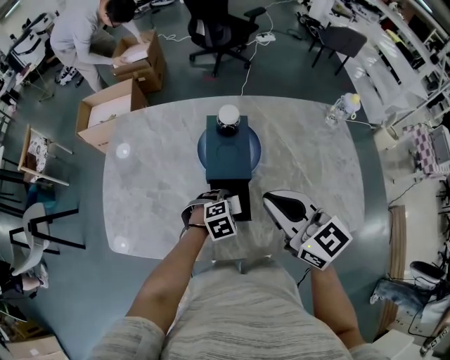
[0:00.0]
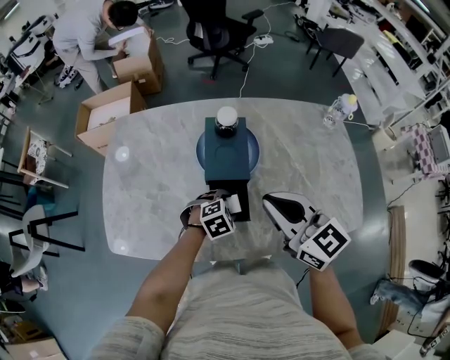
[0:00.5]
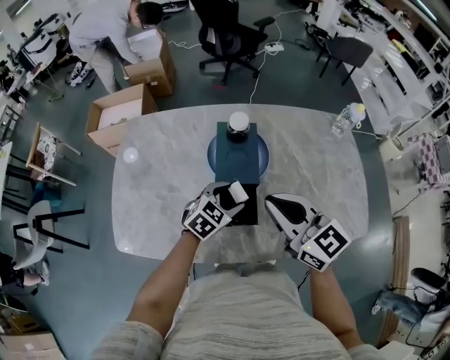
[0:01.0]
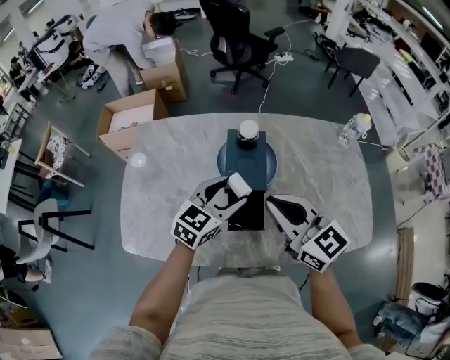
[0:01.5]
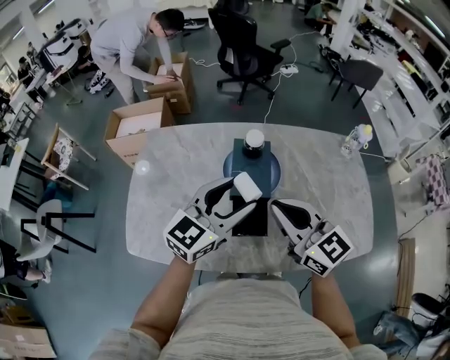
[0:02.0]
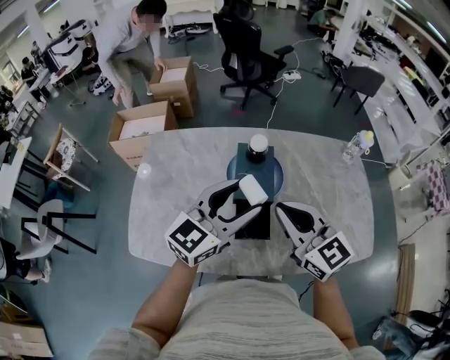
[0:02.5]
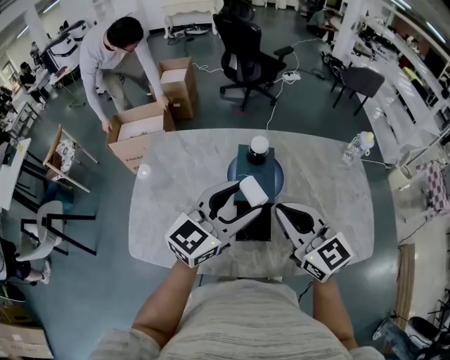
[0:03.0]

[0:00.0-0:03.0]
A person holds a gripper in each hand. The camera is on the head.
0:00.0 to 0:01.5: The left gripper heads upward, covering about 20 cm, and points its fingers roughly 50 degrees further upward.
0:01.5 to 0:03.0: The left gripper is displaced upward by some 15 cm.

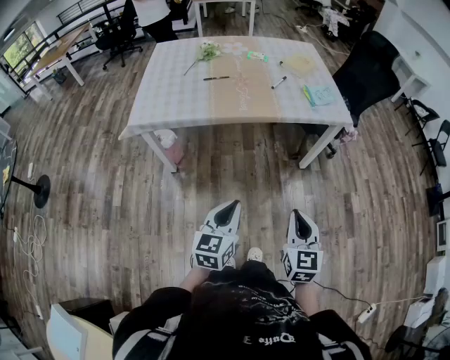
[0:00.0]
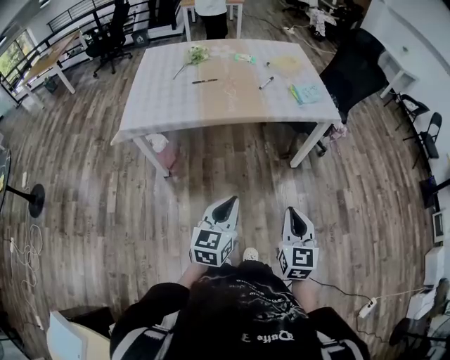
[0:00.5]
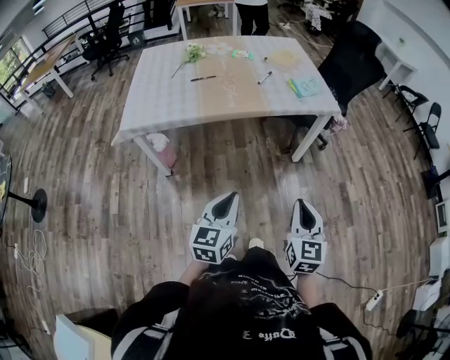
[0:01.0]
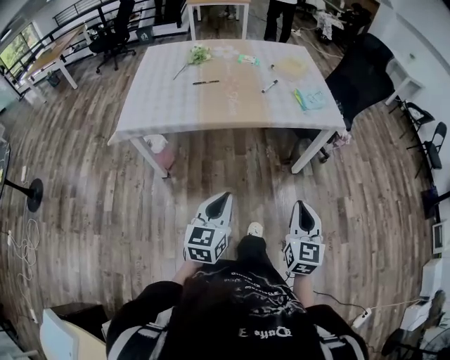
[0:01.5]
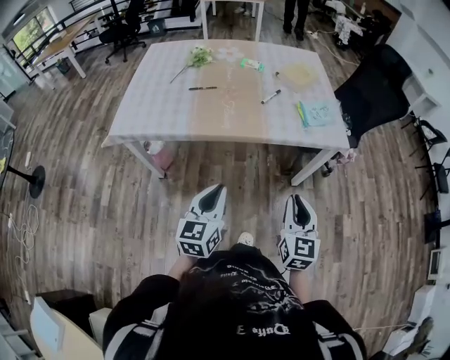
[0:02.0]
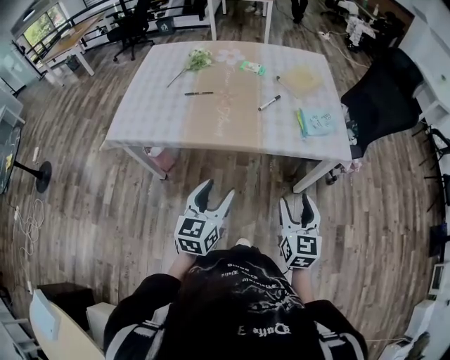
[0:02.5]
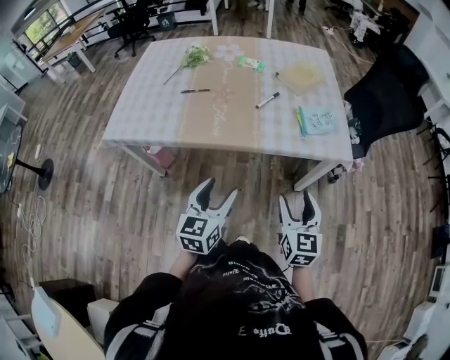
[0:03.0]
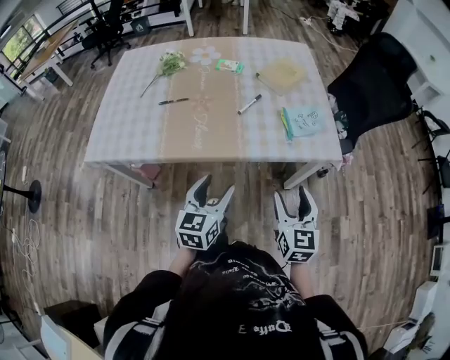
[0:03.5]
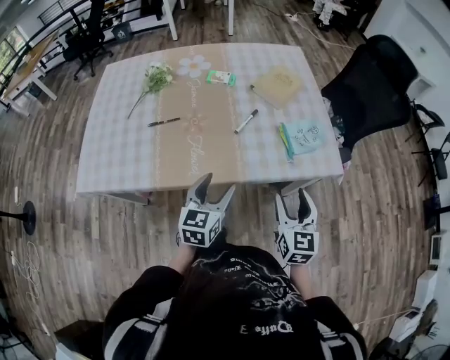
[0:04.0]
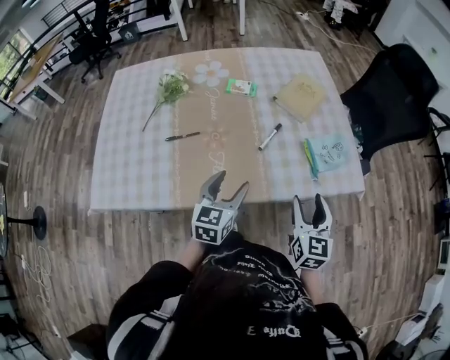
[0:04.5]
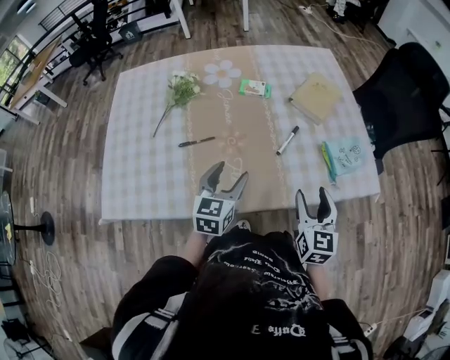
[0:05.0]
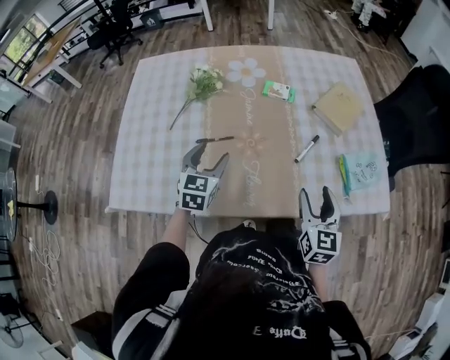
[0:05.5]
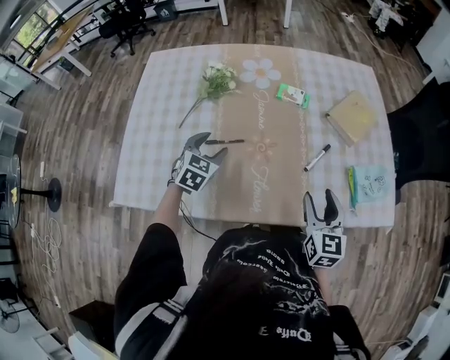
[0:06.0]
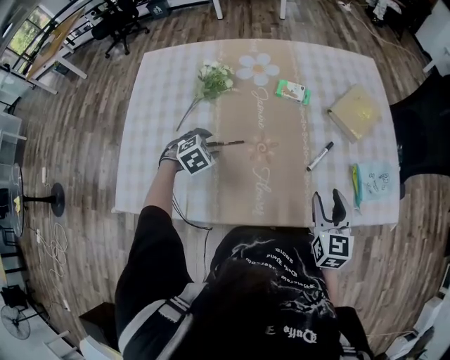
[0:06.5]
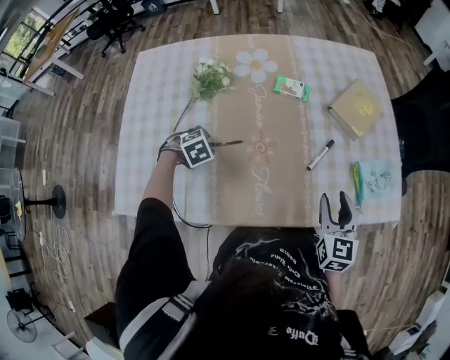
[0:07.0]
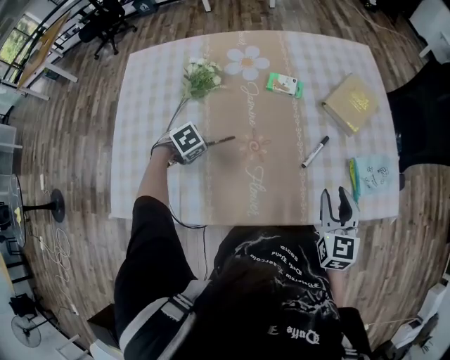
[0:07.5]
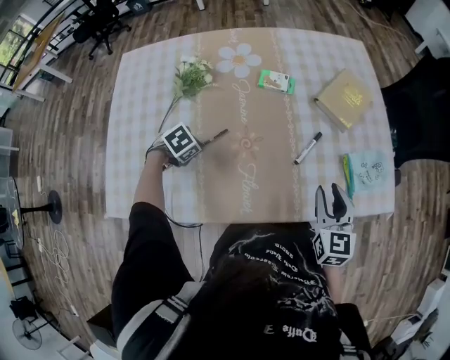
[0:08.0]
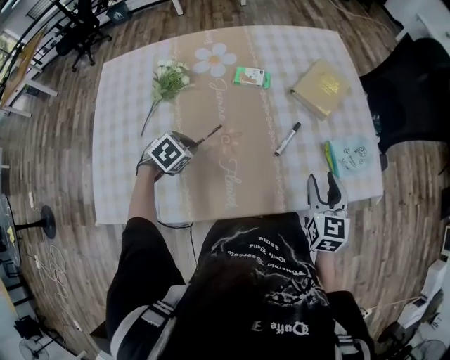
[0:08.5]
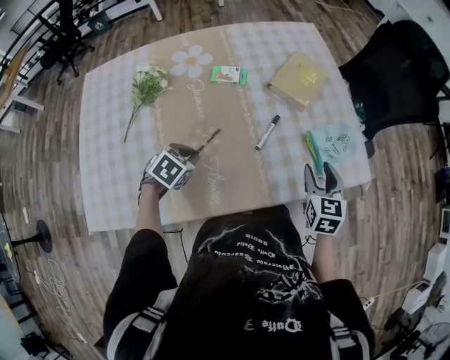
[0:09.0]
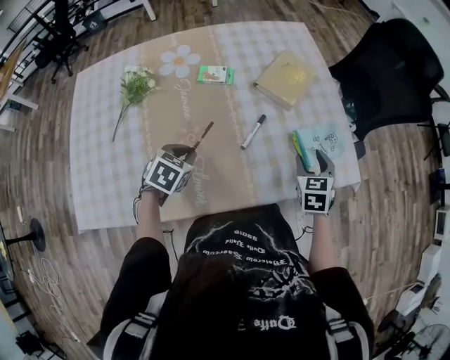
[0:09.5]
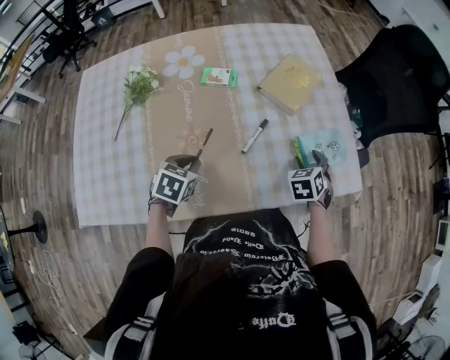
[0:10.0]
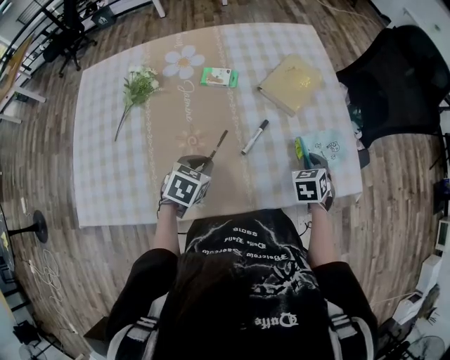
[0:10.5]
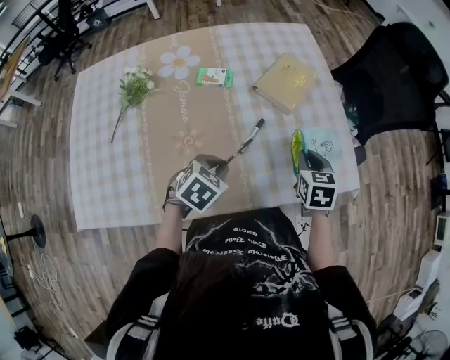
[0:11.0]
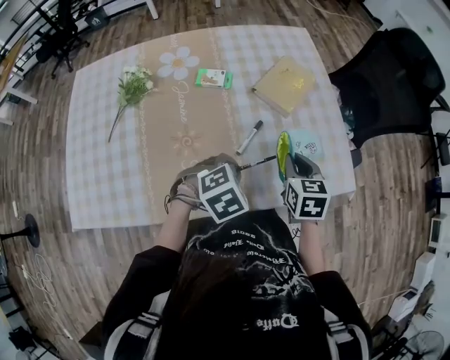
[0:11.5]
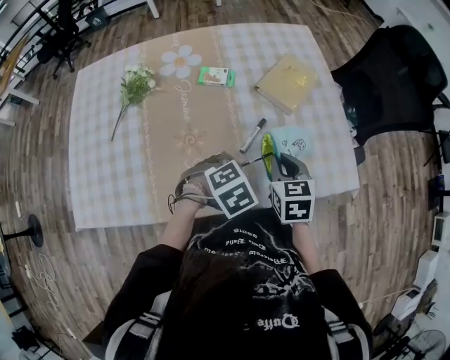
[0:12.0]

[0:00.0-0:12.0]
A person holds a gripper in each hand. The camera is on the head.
0:00.0 to 0:02.0: The two grippers go roughly 20 cm forward.
0:02.0 to 0:04.0: The grippers both shift forward by some 30 cm. The left gripper opens up. Meanwhile the right gripper opens up.
0:04.0 to 0:06.0: The left gripper goes some 40 cm to the left and forward, and swivels roughly 30 degrees, while the right gripper travels to the left and forward by some 25 cm.
0:06.0 to 0:08.0: The left gripper travels downward by some 10 cm, points its fingers some 40 degrees further downward, and closes up; the right gripper shifts by roughly 5 cm, and closes its fingers.
0:08.0 to 0:10.0: The left gripper changes place by approximately 20 cm, and turns by about 30 degrees; the right gripper changes place by some 20 cm, and changes its angle by roughly 40 degrees.
0:10.0 to 0:12.0: The left gripper moves to the right, about 15 cm, and swivels approximately 40 degrees, while the right gripper shifts roughly 15 cm to the left, upward and backward, rotates some 30 degrees, and closes.

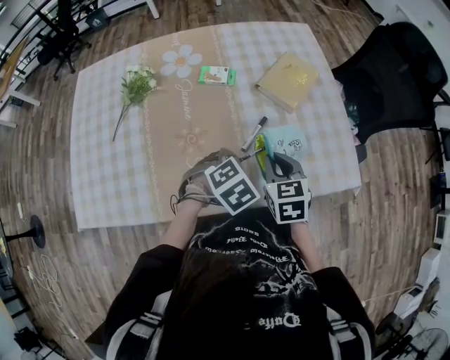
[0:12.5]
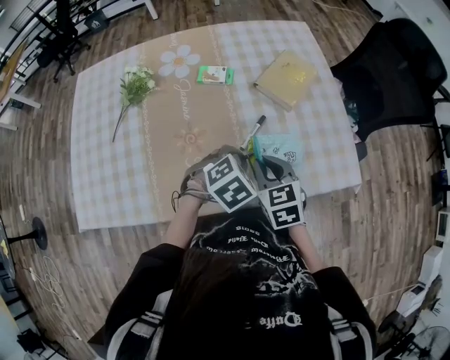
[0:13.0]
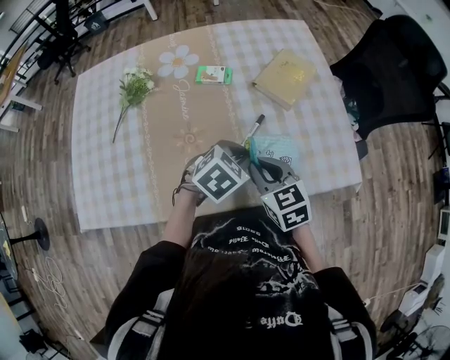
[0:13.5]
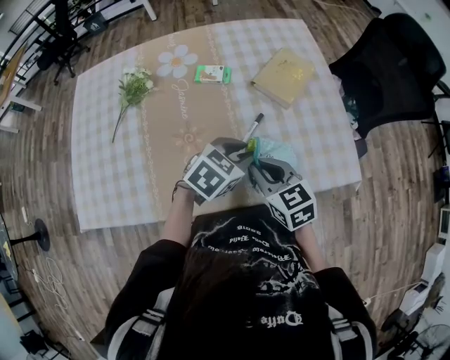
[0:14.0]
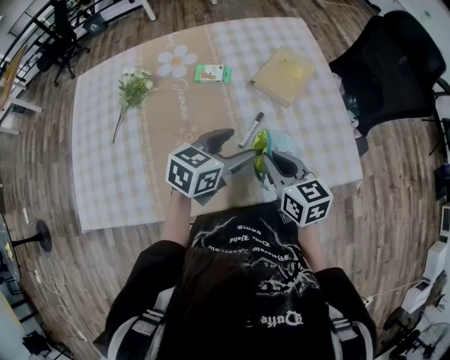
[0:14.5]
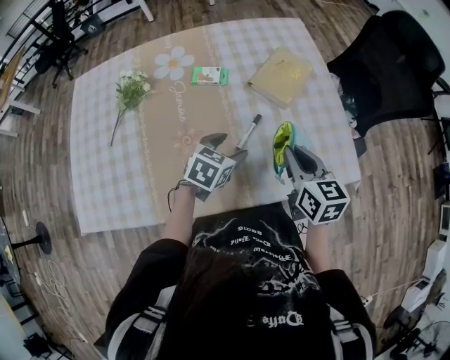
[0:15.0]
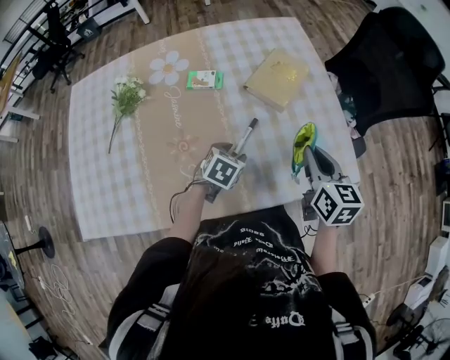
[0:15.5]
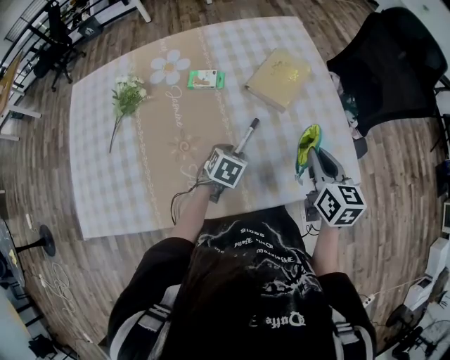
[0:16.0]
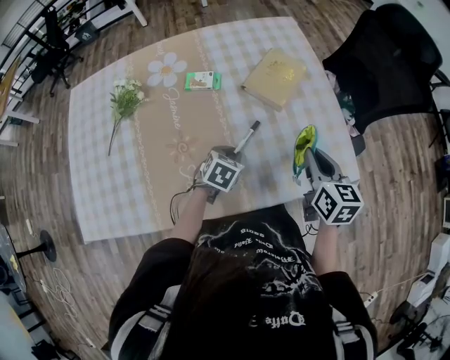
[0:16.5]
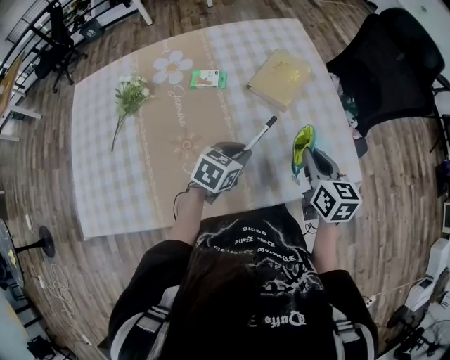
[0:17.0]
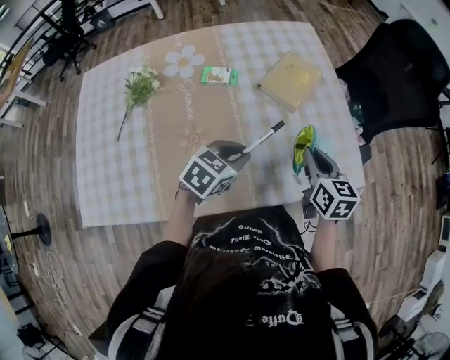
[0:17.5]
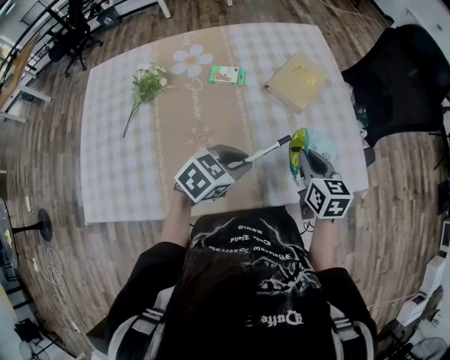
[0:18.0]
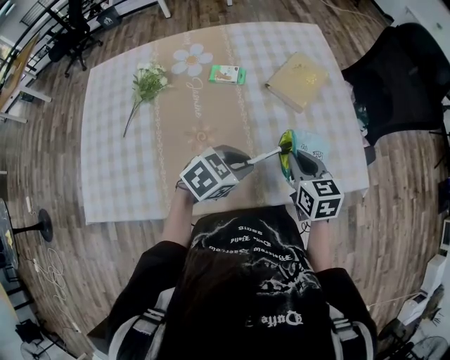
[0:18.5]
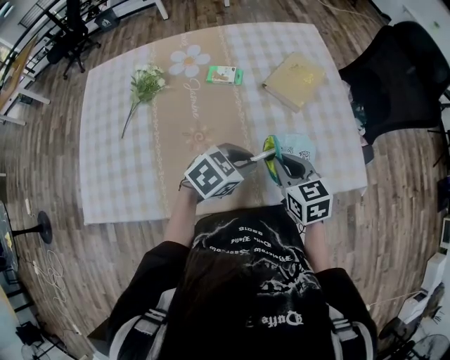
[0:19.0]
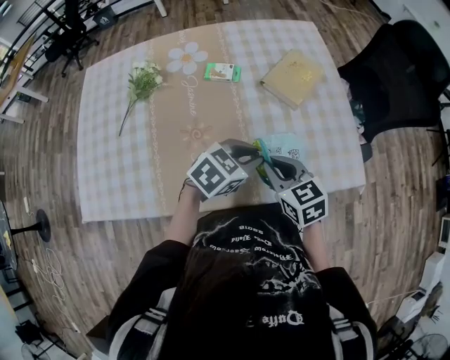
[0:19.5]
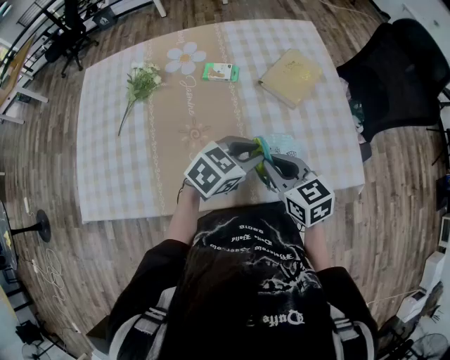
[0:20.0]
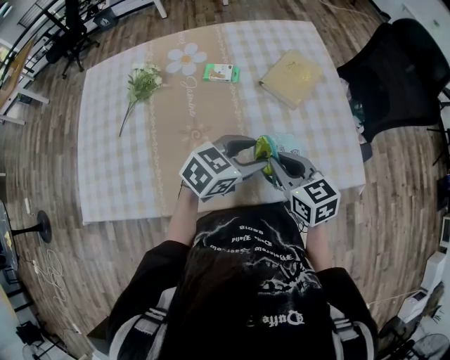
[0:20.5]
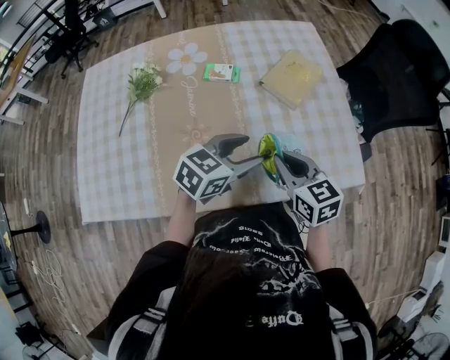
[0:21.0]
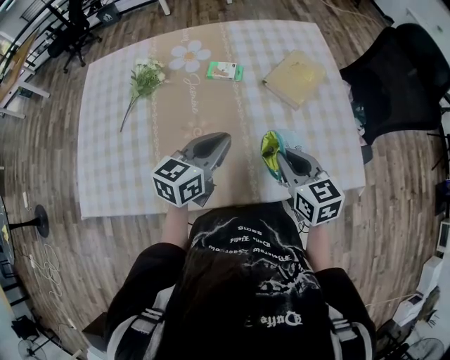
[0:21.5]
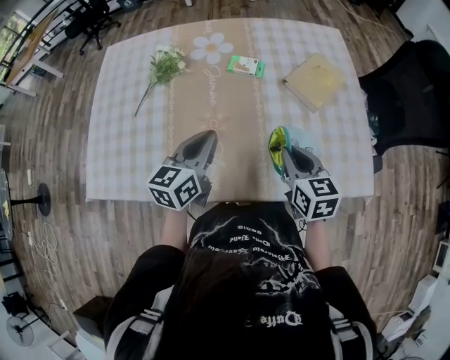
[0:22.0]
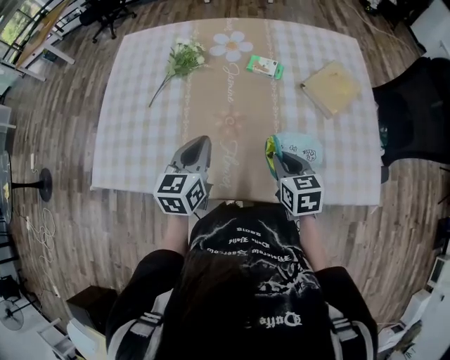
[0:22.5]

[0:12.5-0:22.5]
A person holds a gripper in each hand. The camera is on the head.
0:12.5 to 0:14.5: The left gripper travels upward by roughly 5 cm, tips its fingers upward by about 40 degrees, and opens up. The right gripper swivels some 20 degrees.
0:14.5 to 0:16.5: The right gripper goes about 15 cm to the right and forward, and turns by about 20 degrees. The left gripper travels downward by roughly 15 cm, changes its angle by approximately 30 degrees, and closes its fingers.
0:16.5 to 0:18.5: The right gripper moves to the left, about 10 cm; the left gripper goes approximately 15 cm upward and backward, and turns by roughly 20 degrees.
0:18.5 to 0:20.5: The left gripper changes place by approximately 5 cm, and opens its fingers; the right gripper changes place by approximately 5 cm.
0:20.5 to 0:22.5: The left gripper changes place by some 25 cm, rotates approximately 60 degrees, and closes its fingers, while the right gripper changes place by some 10 cm.

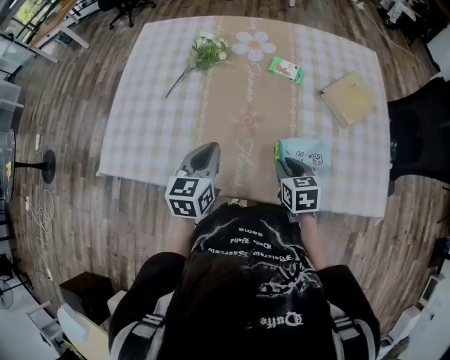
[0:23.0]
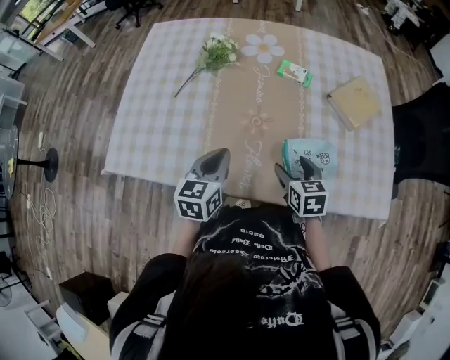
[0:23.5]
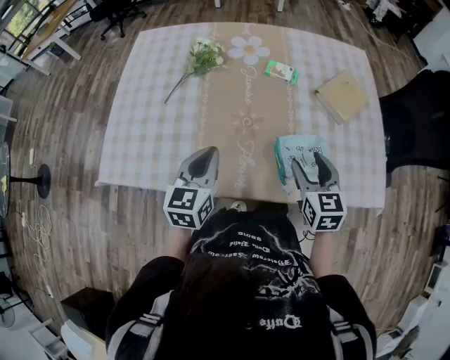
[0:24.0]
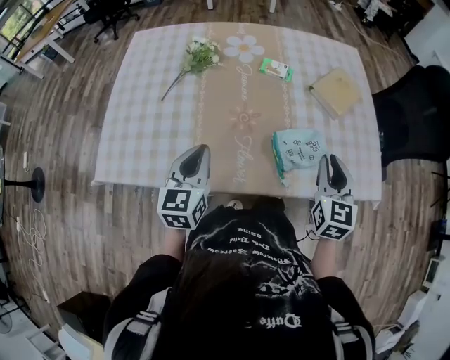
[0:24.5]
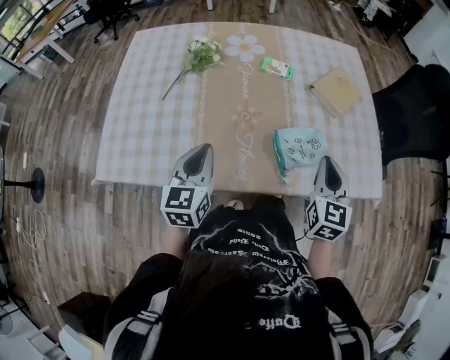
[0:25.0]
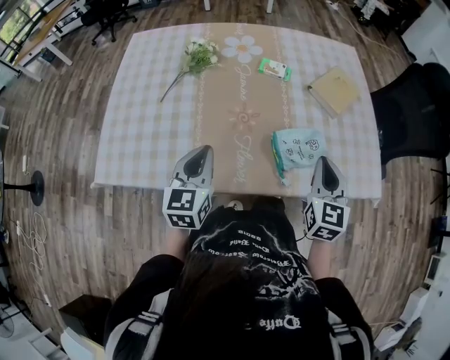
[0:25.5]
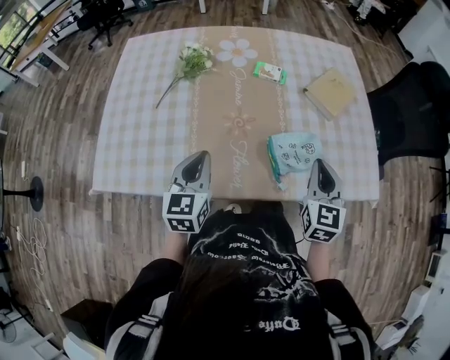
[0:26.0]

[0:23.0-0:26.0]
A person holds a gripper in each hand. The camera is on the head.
0:23.0 to 0:24.5: The left gripper ends up approximately 5 cm from where it was; the right gripper shifts approximately 15 cm upward and to the right, changes its angle by approximately 40 degrees, and opens, then closes once more.
0:24.5 to 0:26.0: The grippers move only a little.
